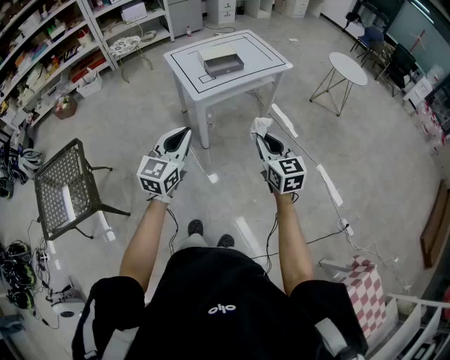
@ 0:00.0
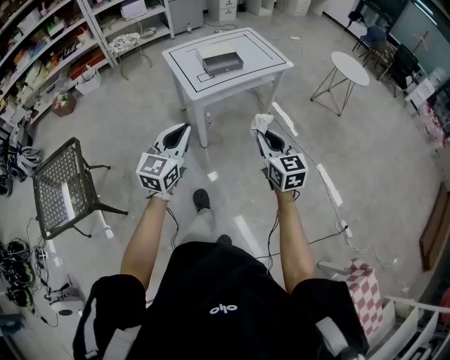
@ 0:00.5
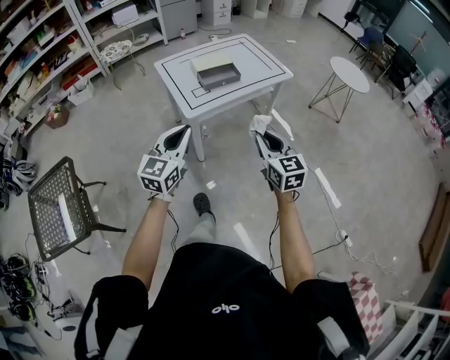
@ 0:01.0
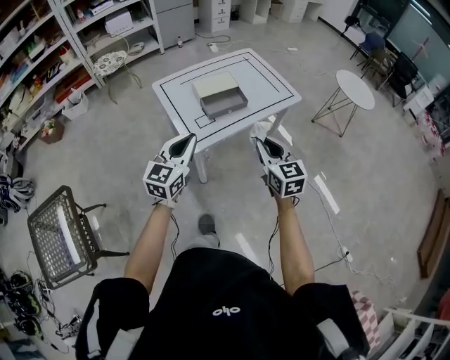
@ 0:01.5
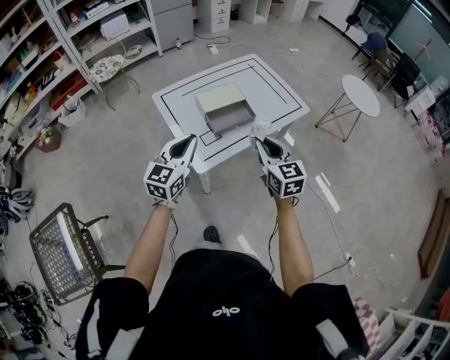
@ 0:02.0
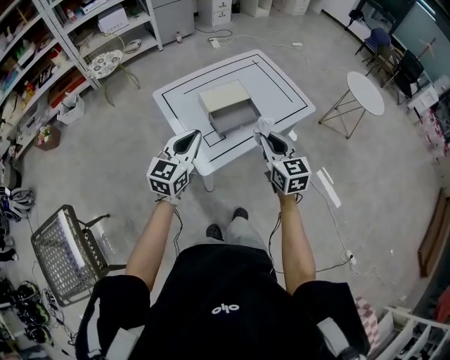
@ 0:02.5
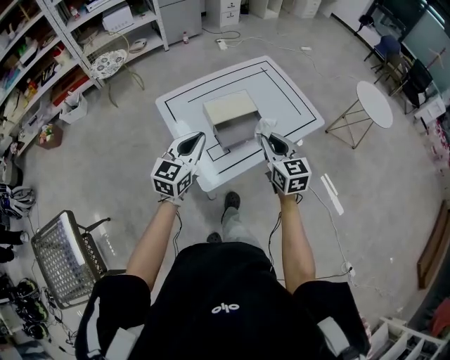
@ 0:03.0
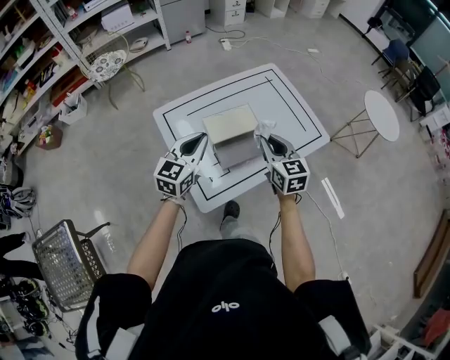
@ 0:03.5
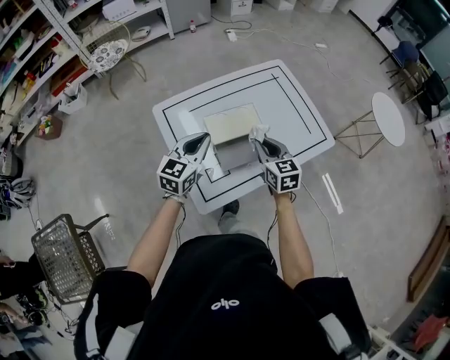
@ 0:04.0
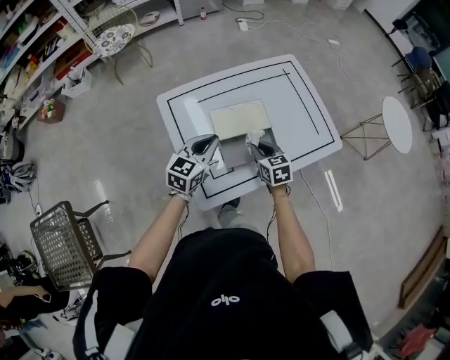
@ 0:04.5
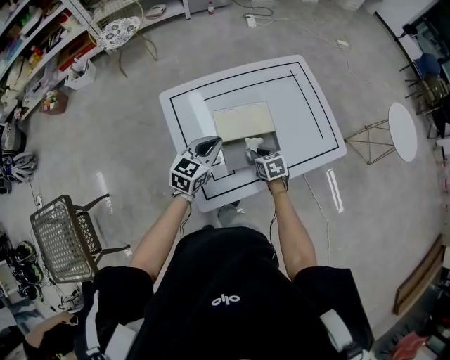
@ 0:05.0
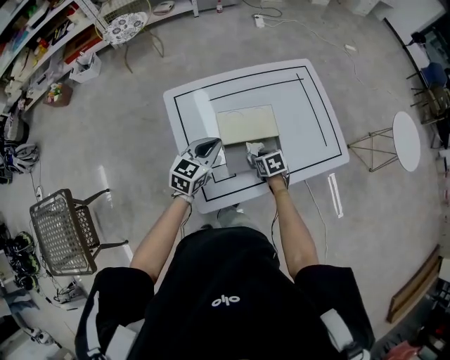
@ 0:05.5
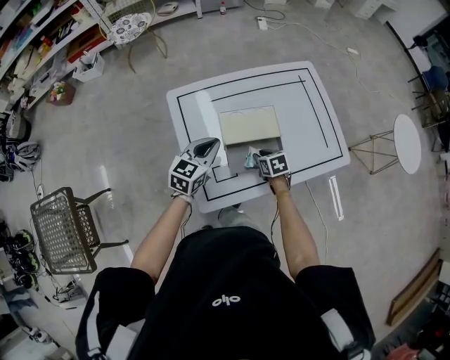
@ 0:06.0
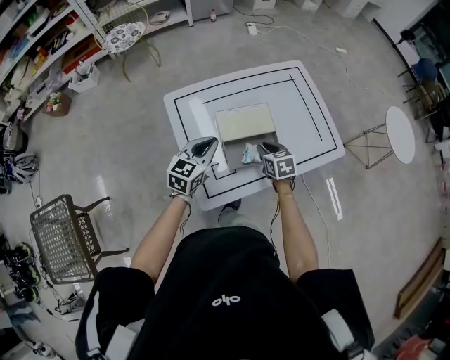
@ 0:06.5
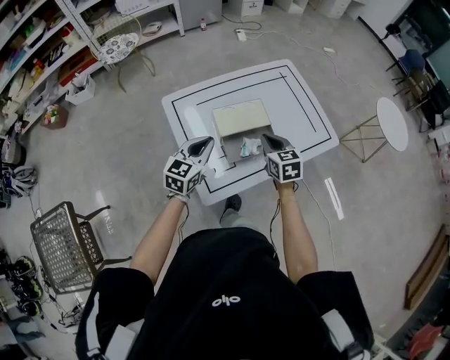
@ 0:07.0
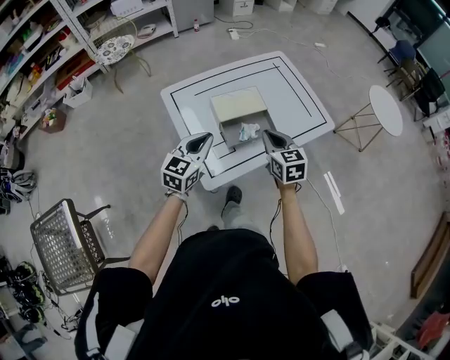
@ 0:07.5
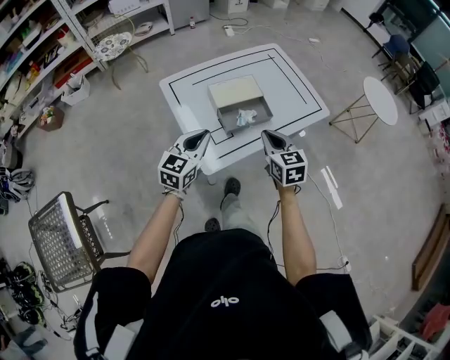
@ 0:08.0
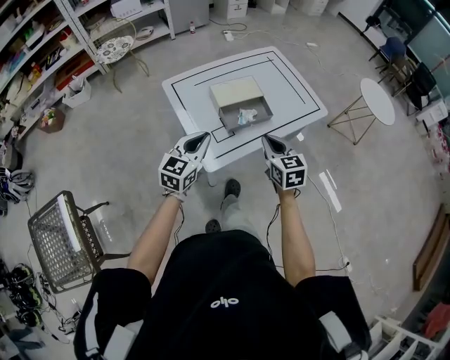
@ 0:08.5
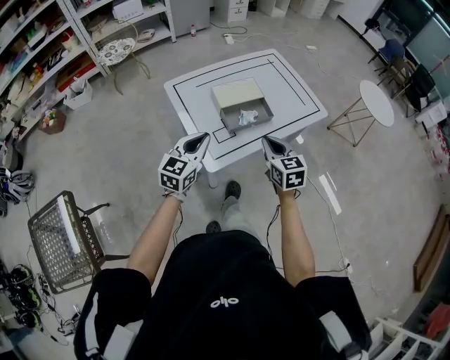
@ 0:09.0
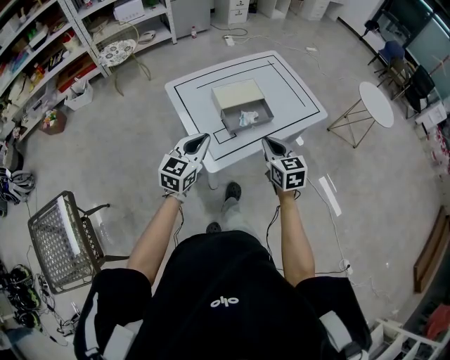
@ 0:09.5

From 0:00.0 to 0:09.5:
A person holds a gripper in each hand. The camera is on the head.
From 0:00.0 to 0:02.0: Both grippers are carried forward, about 50 cm.
From 0:02.0 to 0:04.0: The two grippers go approximately 30 cm forward.
From 0:04.0 to 0:05.5: The right gripper heads downward, covering about 20 cm, and tips its fingers downward by about 30 degrees. Meanwhile the left gripper goes some 10 cm downward.
From 0:05.5 to 0:07.5: The left gripper moves backward and upward, about 15 cm; the right gripper heads upward and backward, covering roughly 25 cm, and points its fingers approximately 30 degrees further upward.
From 0:07.5 to 0:09.5: The grippers both shift backward by approximately 10 cm.

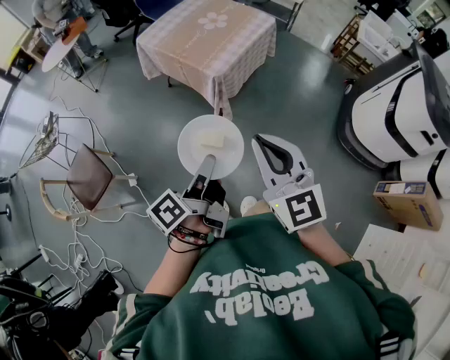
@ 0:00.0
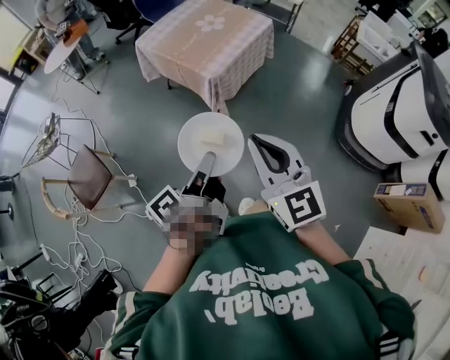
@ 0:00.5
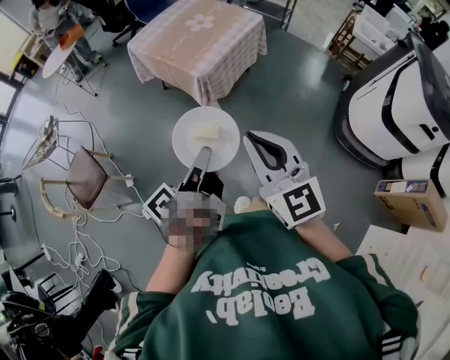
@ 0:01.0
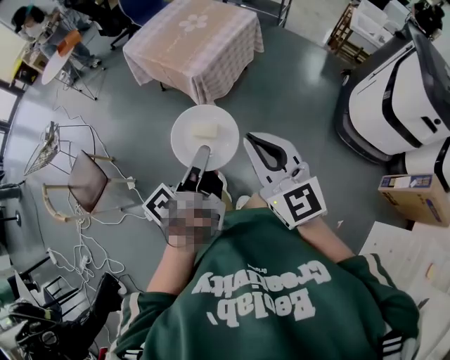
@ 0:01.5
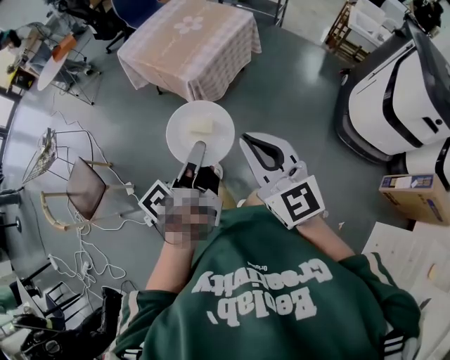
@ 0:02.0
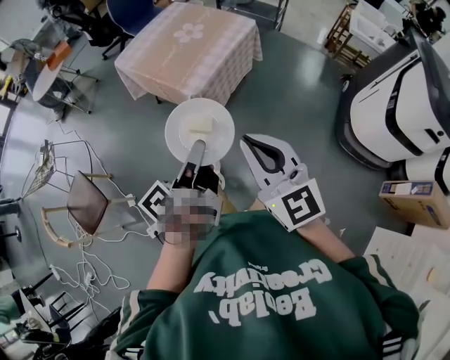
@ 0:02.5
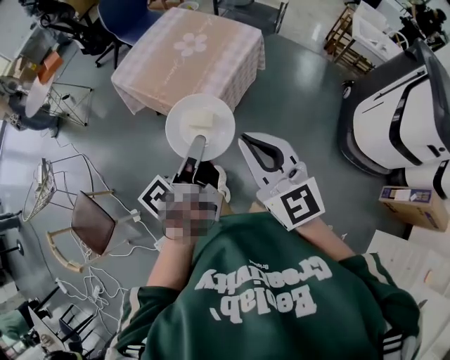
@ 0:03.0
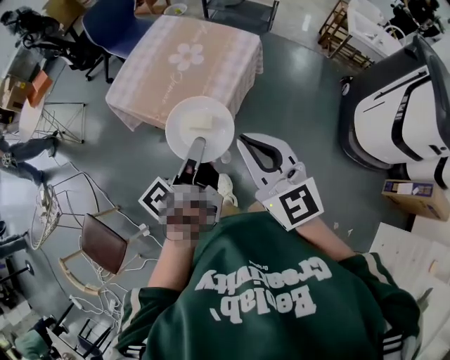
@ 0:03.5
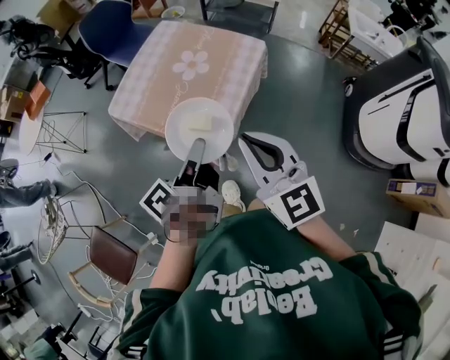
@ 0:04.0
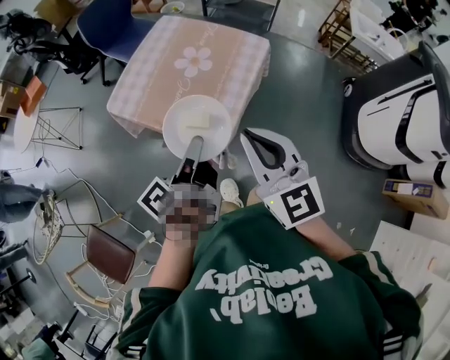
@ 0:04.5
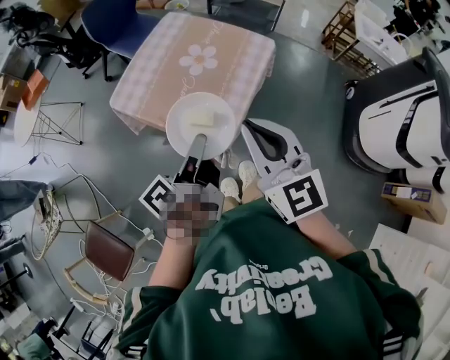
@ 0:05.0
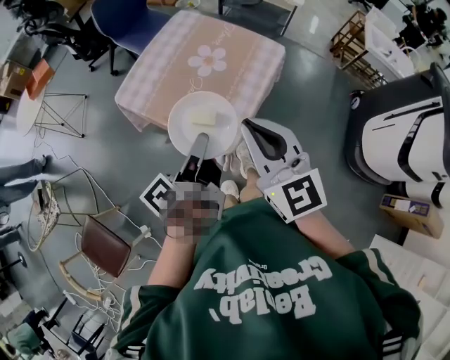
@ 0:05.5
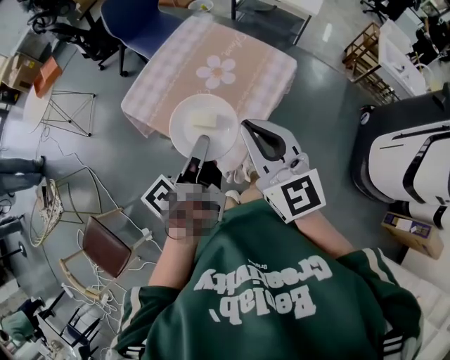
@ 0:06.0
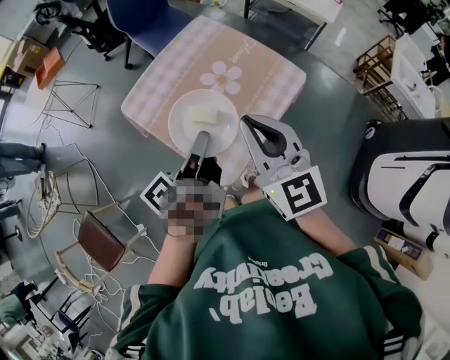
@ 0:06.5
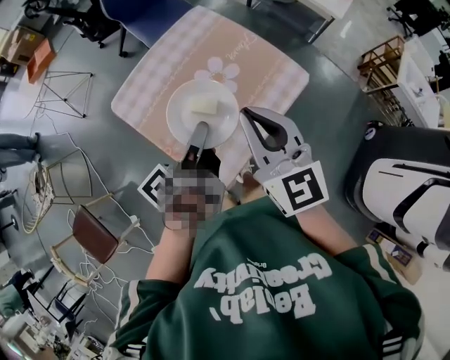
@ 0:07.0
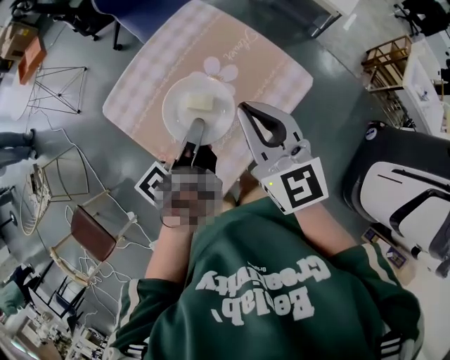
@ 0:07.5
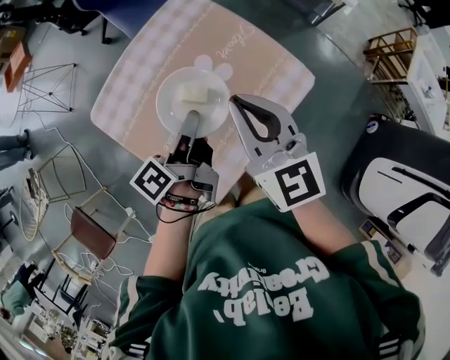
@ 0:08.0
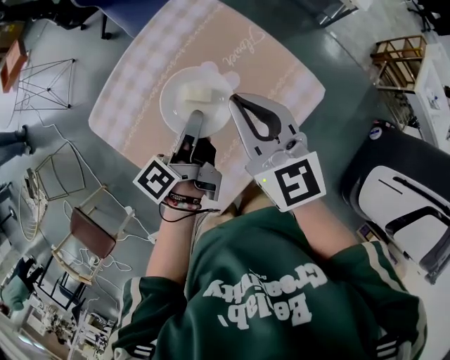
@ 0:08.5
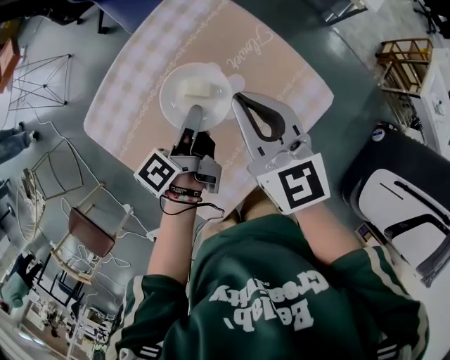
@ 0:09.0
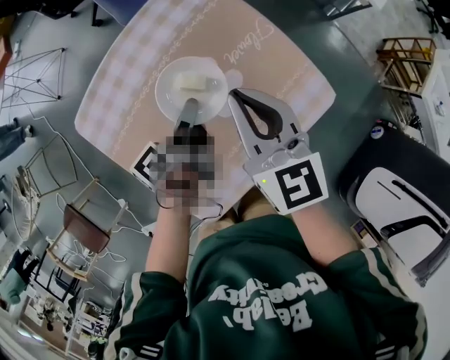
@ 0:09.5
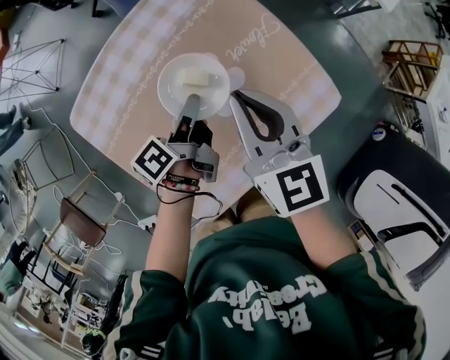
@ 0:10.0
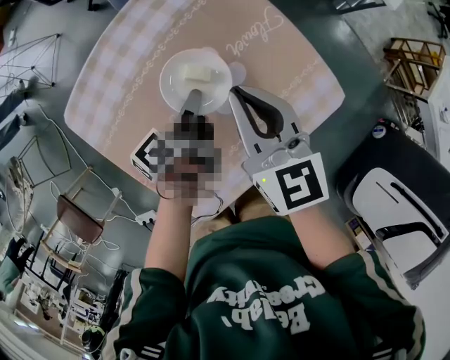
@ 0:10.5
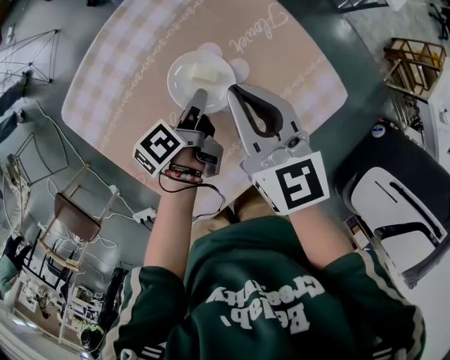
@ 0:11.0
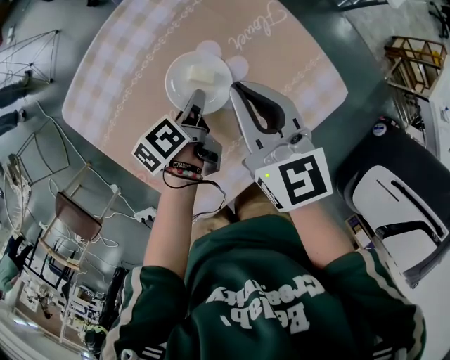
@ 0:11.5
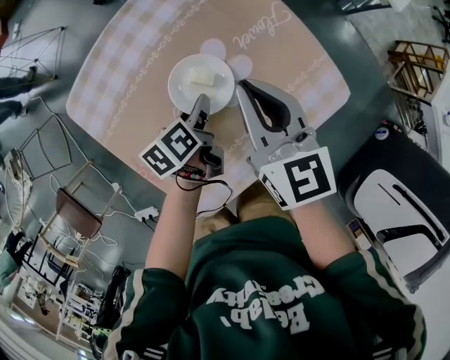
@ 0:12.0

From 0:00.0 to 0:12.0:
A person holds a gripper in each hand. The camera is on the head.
From 0:00.0 to 0:02.0: The grippers both shift to the right by about 10 cm.
From 0:02.0 to 0:04.0: The two grippers go approximately 40 cm forward.
From 0:04.0 to 0:06.0: The grippers both shift forward by about 10 cm.
From 0:06.0 to 0:08.0: The left gripper heads forward and downward, covering about 25 cm. The right gripper moves forward, some 25 cm.
From 0:08.0 to 0:10.0: Both grippers move downward and forward, some 15 cm.
From 0:10.0 to 0:12.0: The left gripper is displaced downward by some 5 cm, swivels some 30 degrees, and opens up.

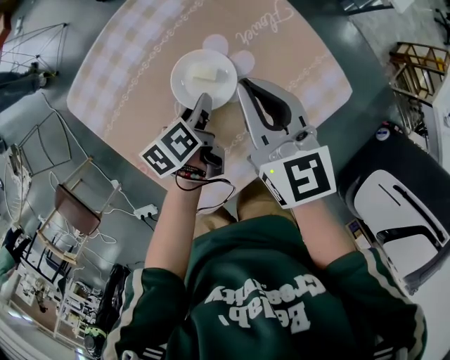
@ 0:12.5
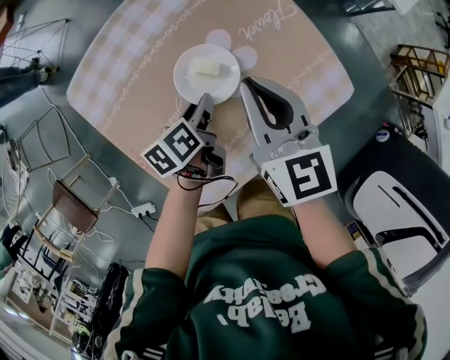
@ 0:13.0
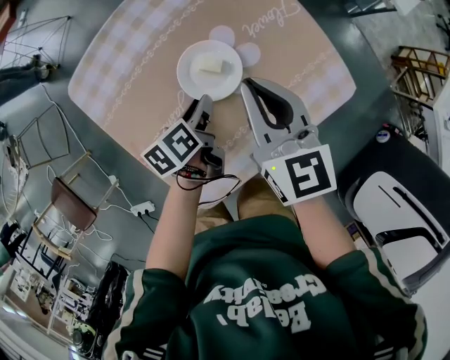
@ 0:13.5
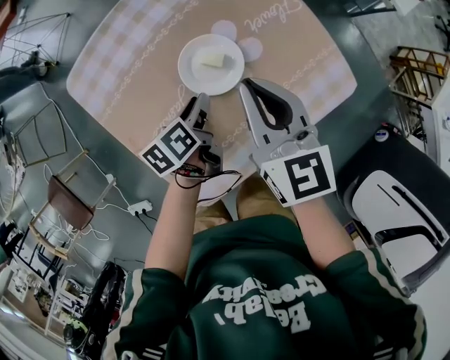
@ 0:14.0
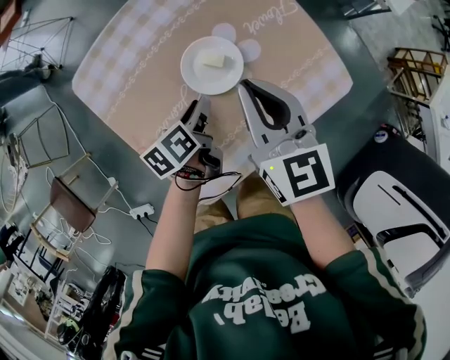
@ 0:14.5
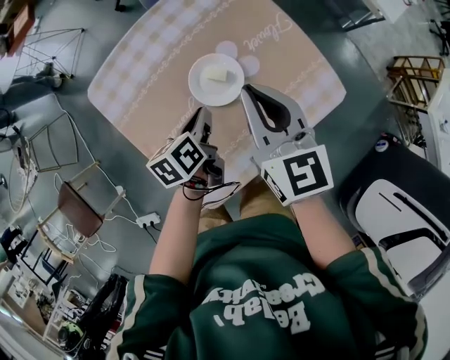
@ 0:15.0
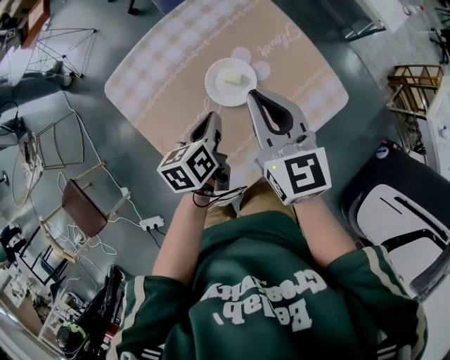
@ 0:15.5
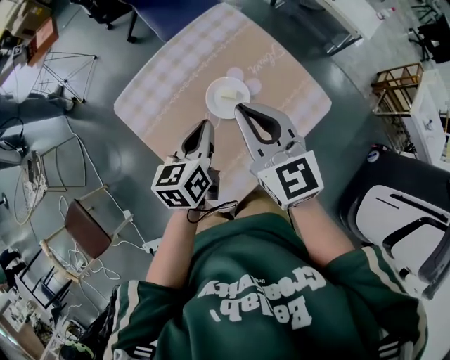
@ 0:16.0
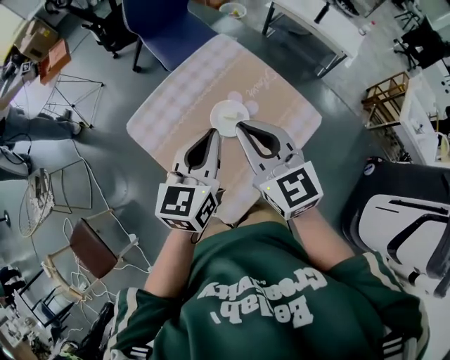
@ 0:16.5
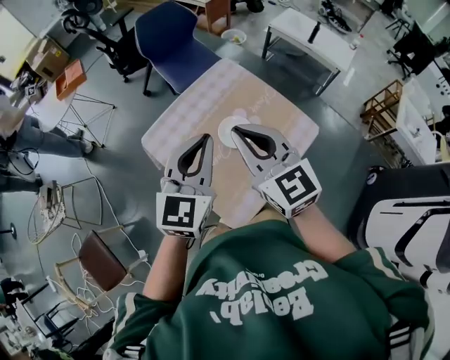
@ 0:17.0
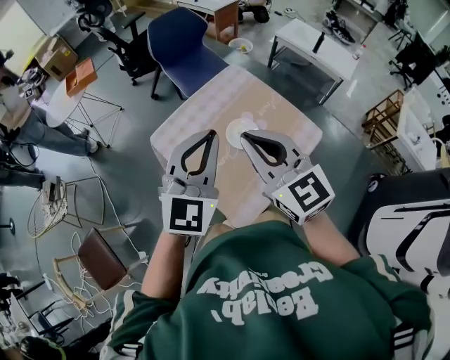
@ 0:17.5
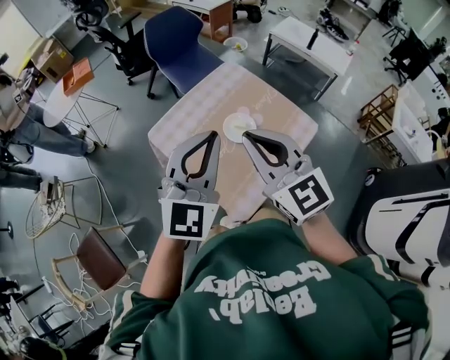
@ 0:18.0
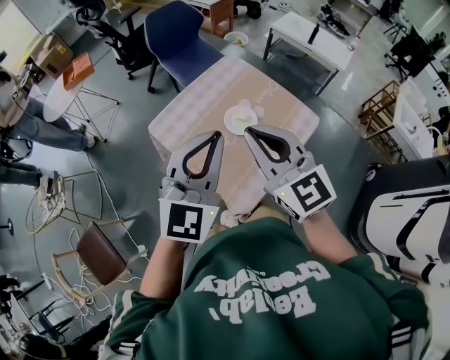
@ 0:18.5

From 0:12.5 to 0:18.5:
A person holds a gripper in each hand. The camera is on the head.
From 0:12.5 to 0:14.5: The left gripper shifts by about 5 cm. Meanwhile the right gripper ends up about 5 cm from where it was.
From 0:14.5 to 0:16.5: The right gripper shifts about 20 cm upward. The left gripper is displaced upward by about 35 cm, rolls clockwise, seen from behind, by about 50 degrees, and closes.
From 0:16.5 to 0:18.5: The left gripper goes some 20 cm upward and backward, and turns by approximately 40 degrees; the right gripper moves backward and upward, some 15 cm.
